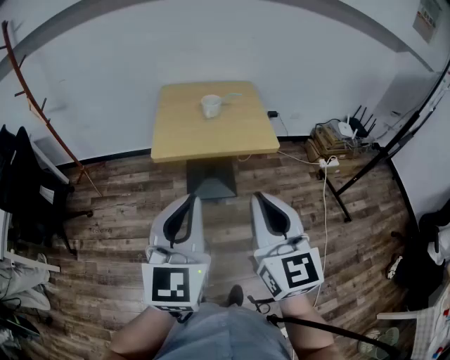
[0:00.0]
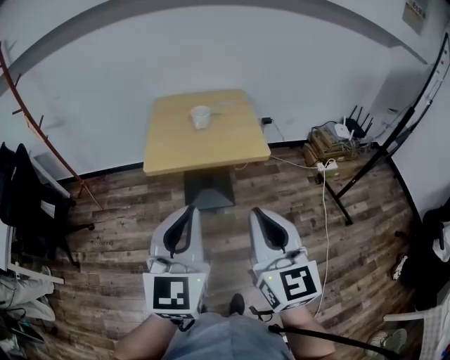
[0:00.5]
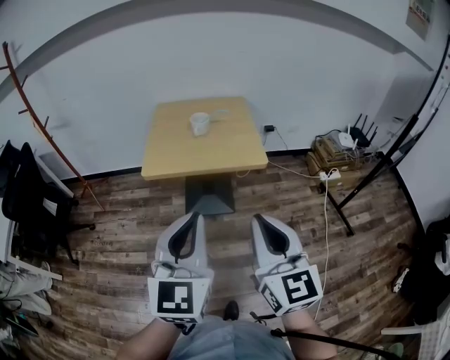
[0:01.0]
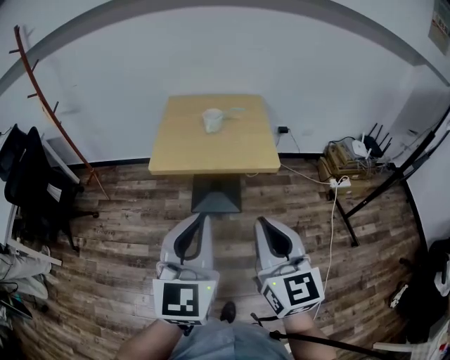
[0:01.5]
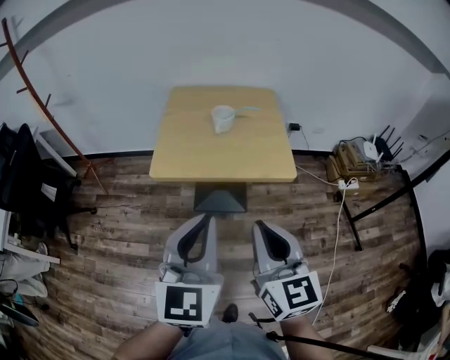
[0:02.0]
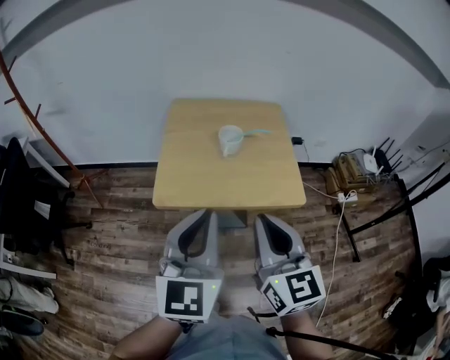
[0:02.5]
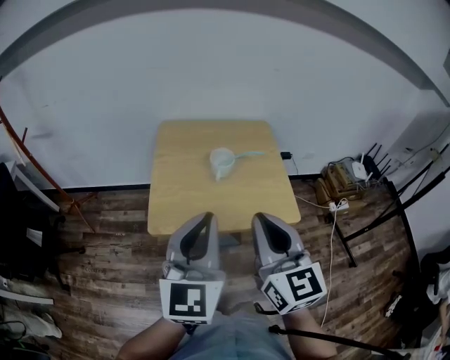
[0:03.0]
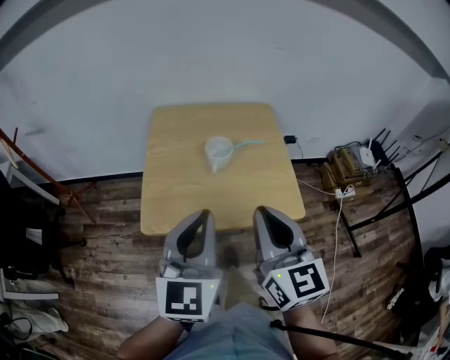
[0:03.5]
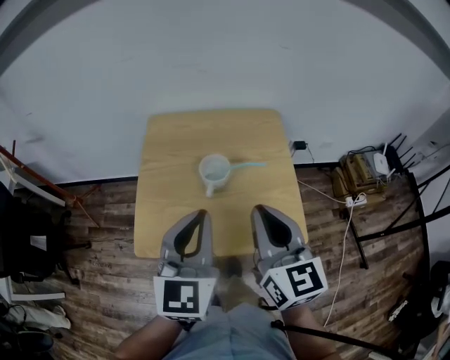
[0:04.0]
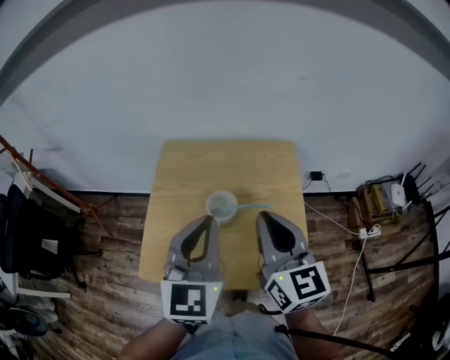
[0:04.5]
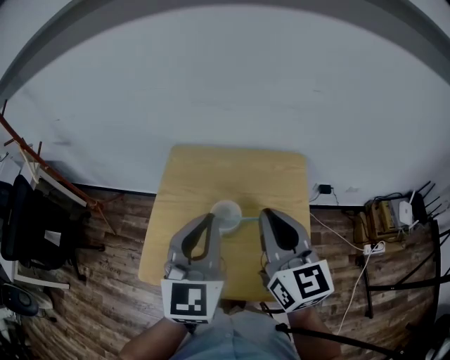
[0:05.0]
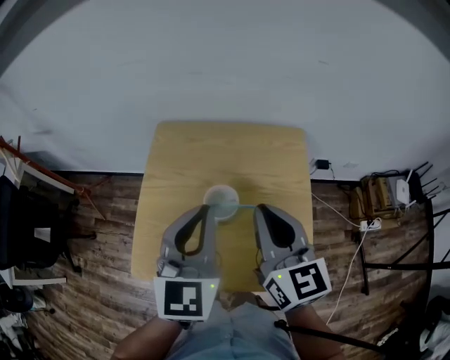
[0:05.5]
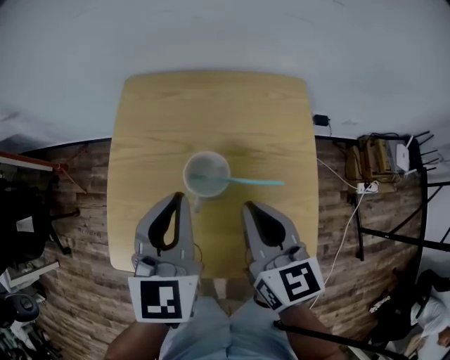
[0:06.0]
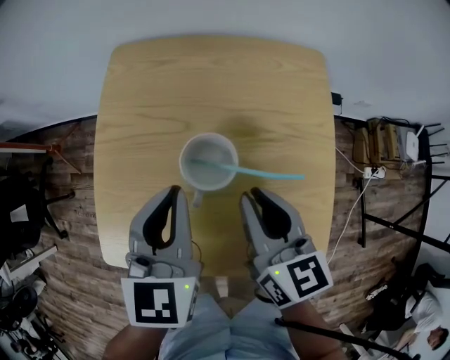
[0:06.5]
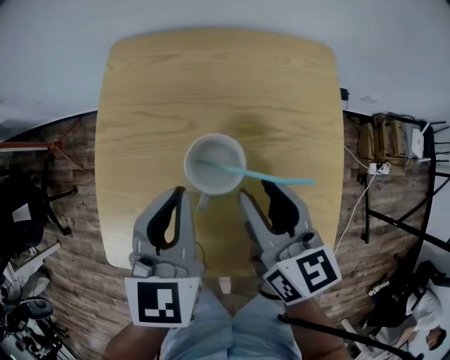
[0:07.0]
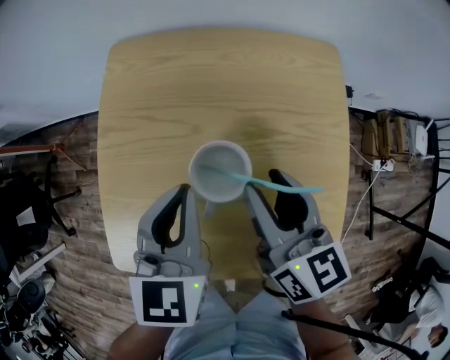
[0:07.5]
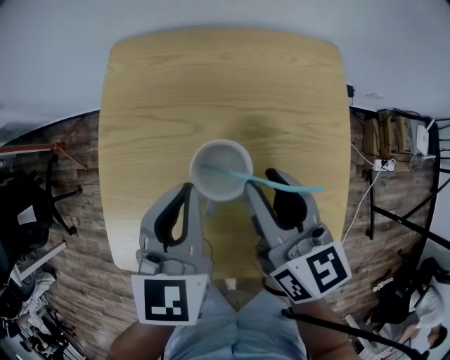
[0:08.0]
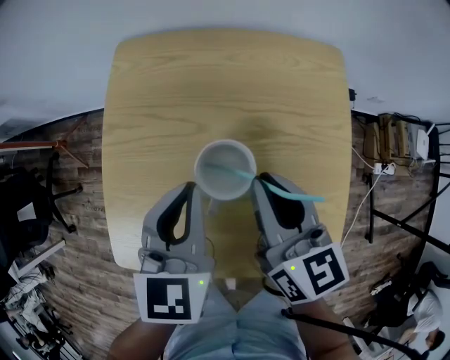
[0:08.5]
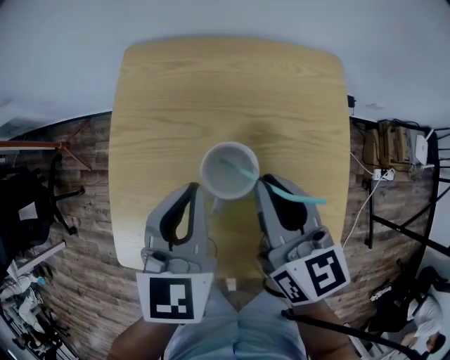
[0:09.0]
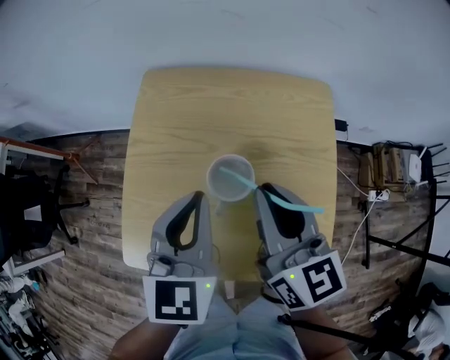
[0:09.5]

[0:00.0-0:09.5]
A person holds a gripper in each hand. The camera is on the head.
0:00.0 to 0:02.0: The left gripper moves forward and to the right, approximately 15 cm, while the right gripper moves forward and downward, roughly 15 cm.
0:02.0 to 0:04.0: The two grippers go some 35 cm forward.
0:04.0 to 0:05.5: Both grippers travel together forward, approximately 15 cm.
0:05.5 to 0:07.5: Both grippers travel together downward, about 15 cm. The right gripper opens its fingers.
0:07.5 to 0:09.5: The two grippers go about 10 cm upward. The right gripper closes up.

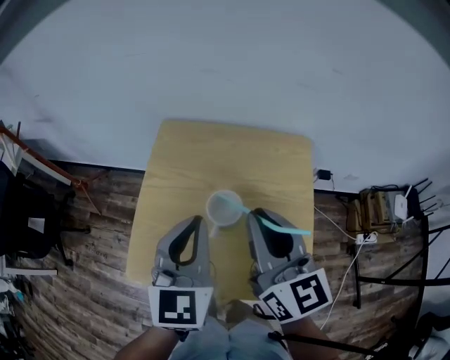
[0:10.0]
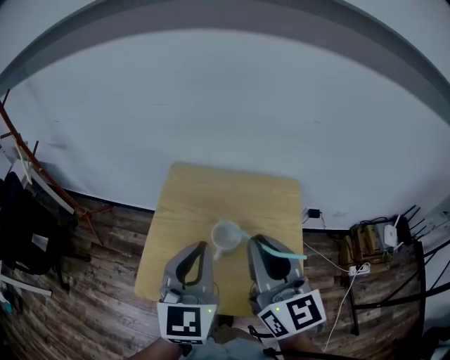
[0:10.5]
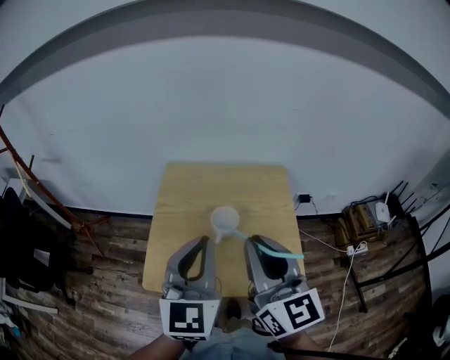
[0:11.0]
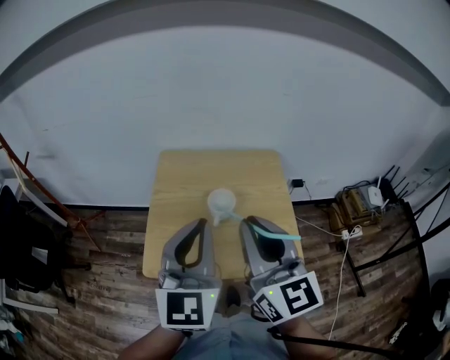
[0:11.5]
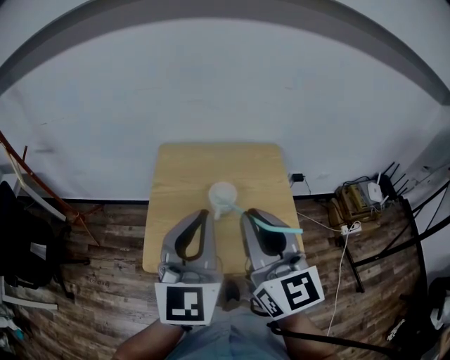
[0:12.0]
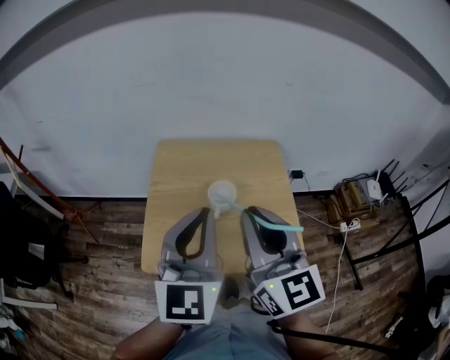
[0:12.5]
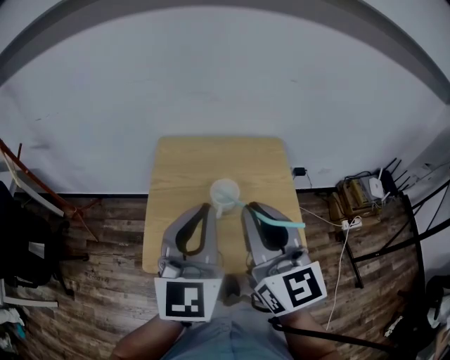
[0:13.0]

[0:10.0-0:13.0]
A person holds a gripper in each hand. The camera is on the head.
0:10.0 to 0:11.5: Both grippers move backward and upward, about 15 cm.
0:11.5 to 0:13.0: The grippers move only a little.

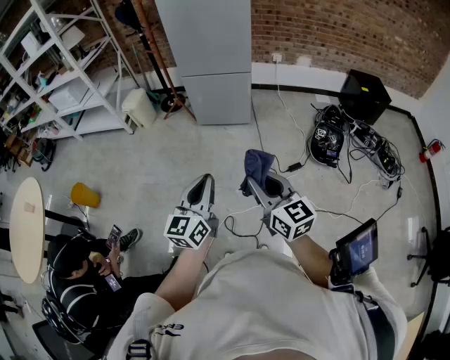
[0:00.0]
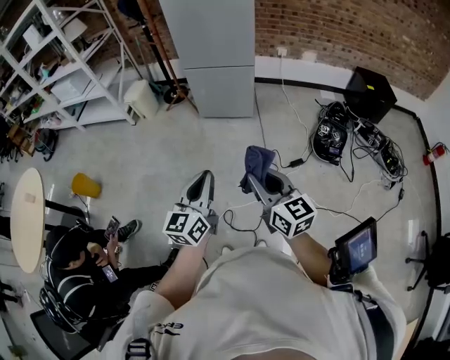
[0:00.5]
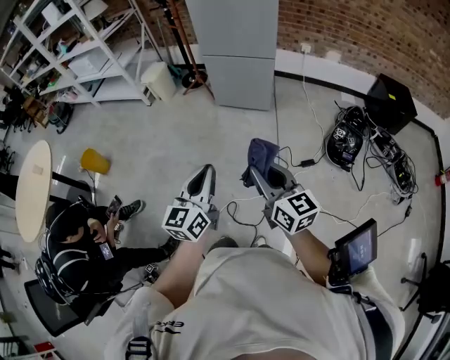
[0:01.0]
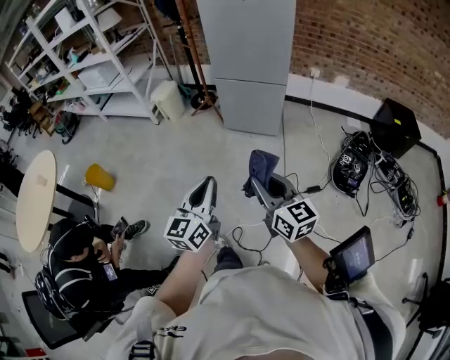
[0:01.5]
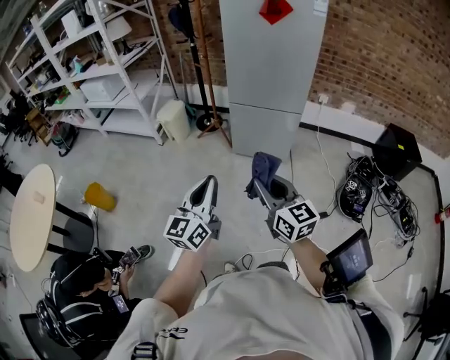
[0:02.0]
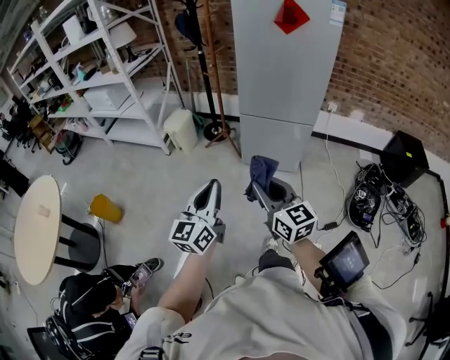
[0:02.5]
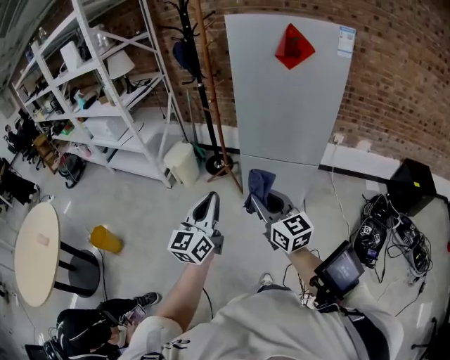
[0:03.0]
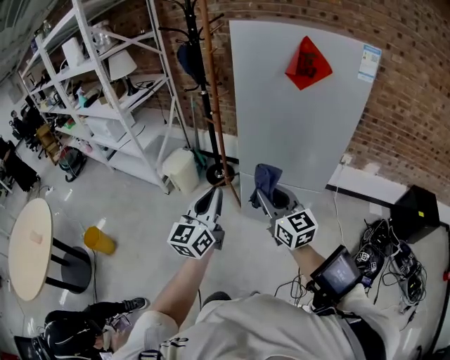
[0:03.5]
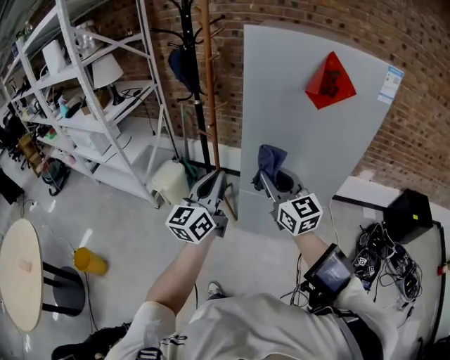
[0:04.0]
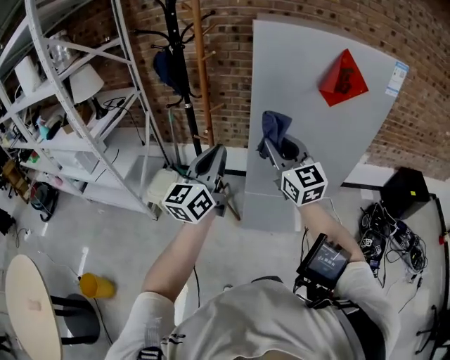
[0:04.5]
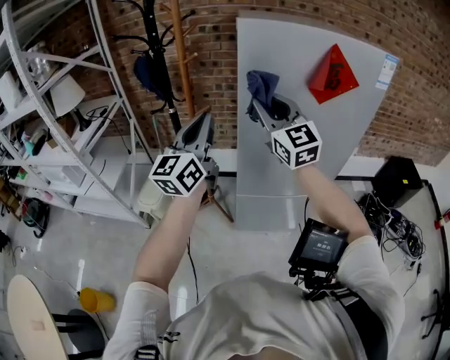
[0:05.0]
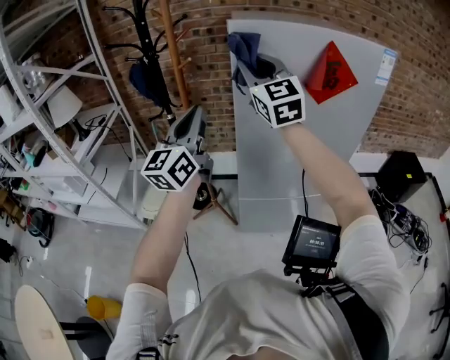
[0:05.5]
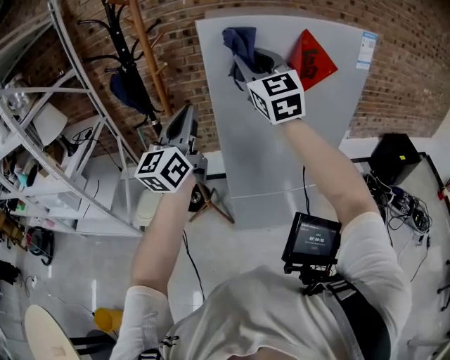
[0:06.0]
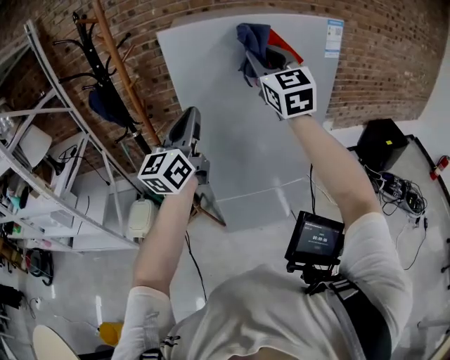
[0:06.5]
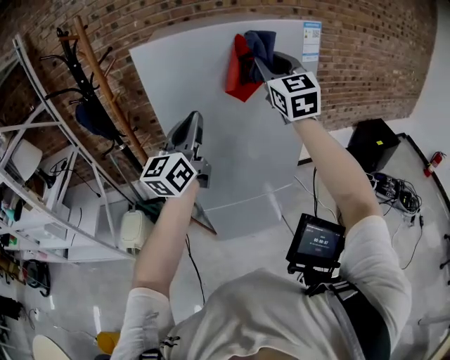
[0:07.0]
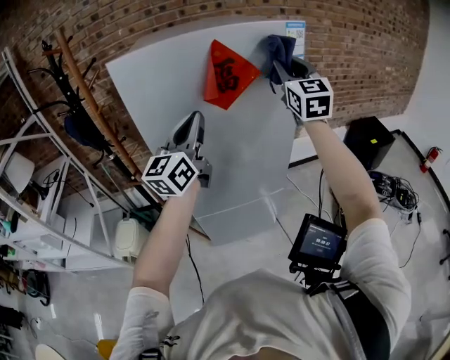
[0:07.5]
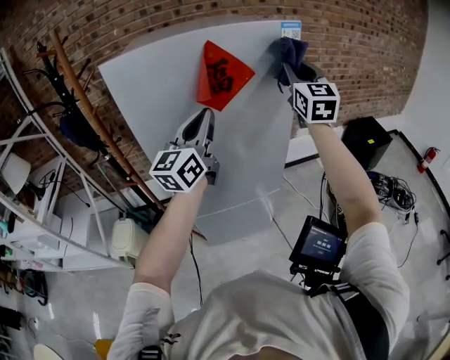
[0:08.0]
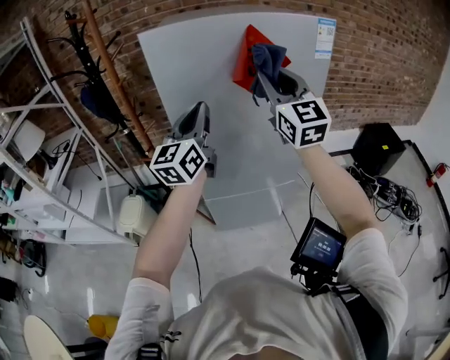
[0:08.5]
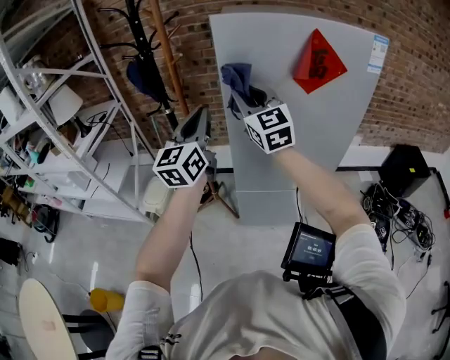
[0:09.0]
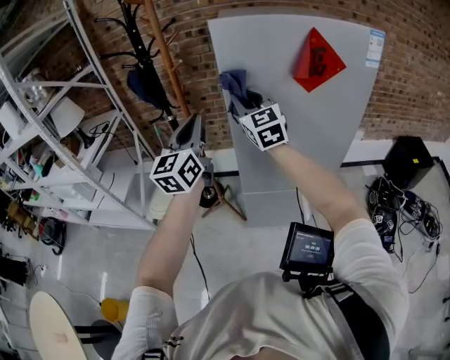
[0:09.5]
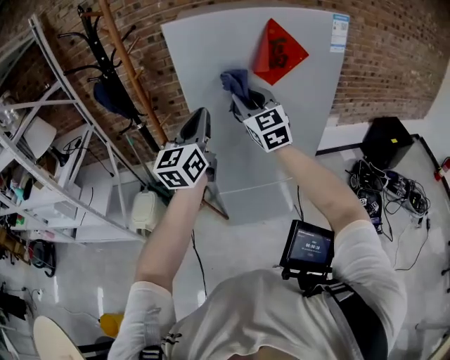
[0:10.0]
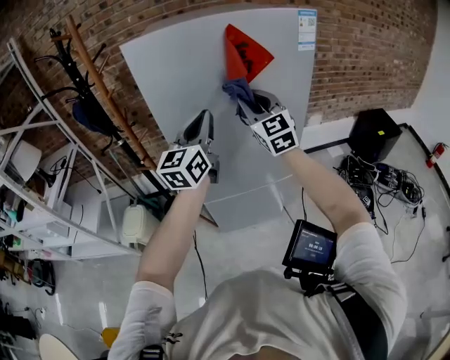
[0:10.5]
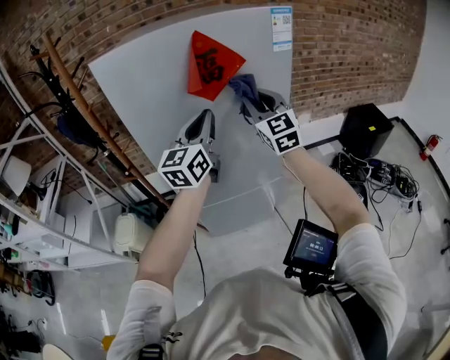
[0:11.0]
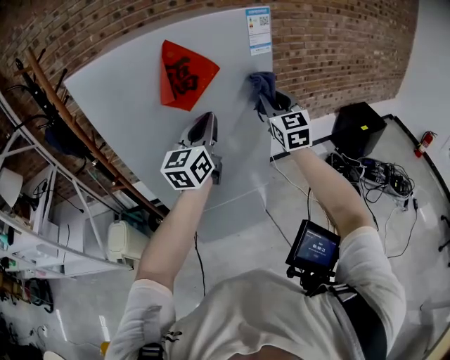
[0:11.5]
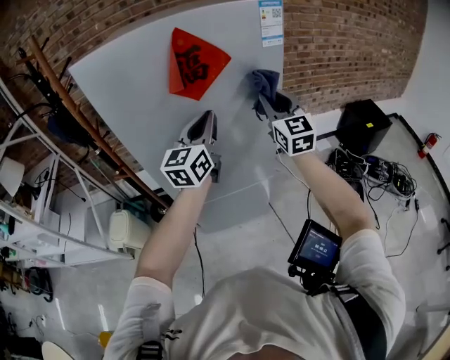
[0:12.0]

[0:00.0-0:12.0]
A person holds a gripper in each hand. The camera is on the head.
0:00.0 to 0:02.0: Both grippers travel together forward and to the left, approximately 25 cm.
0:02.0 to 0:04.0: Both grippers are carried forward, some 50 cm.
0:04.0 to 0:06.0: The left gripper goes approximately 25 cm forward and upward; the right gripper is displaced upward and forward by some 30 cm, and swivels about 40 degrees.
0:06.0 to 0:08.0: The grippers both shift to the right by roughly 30 cm. The right gripper changes its angle by approximately 20 degrees.
0:08.0 to 0:10.0: The right gripper ends up roughly 35 cm from where it was, and turns by about 20 degrees.
0:10.0 to 0:12.0: The left gripper shifts about 25 cm to the right and forward. Meanwhile the right gripper goes roughly 30 cm to the right.

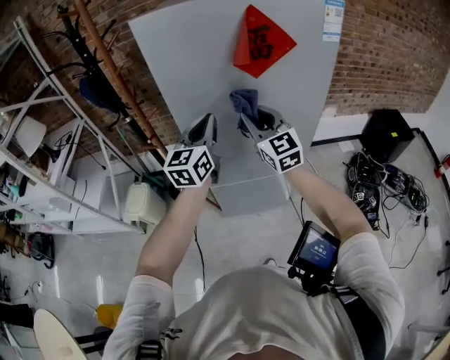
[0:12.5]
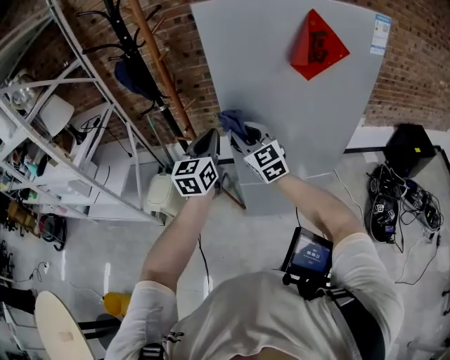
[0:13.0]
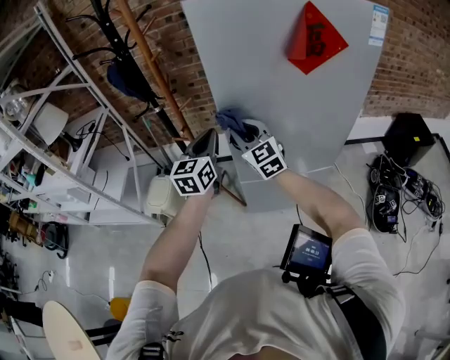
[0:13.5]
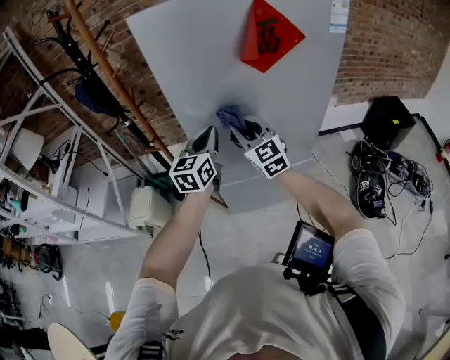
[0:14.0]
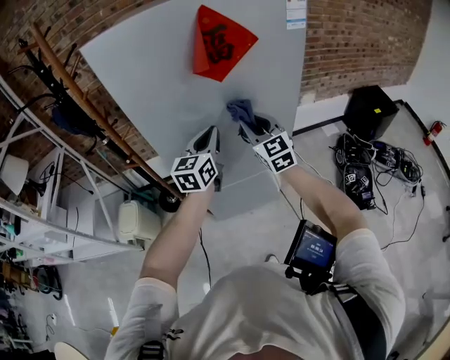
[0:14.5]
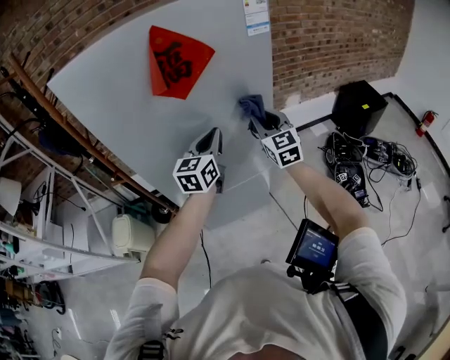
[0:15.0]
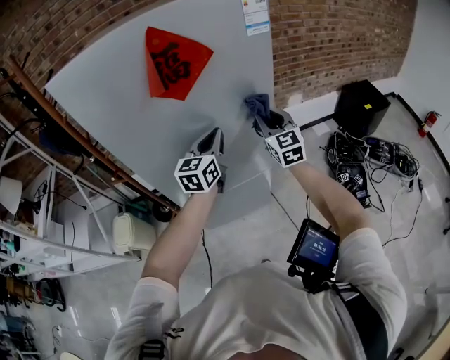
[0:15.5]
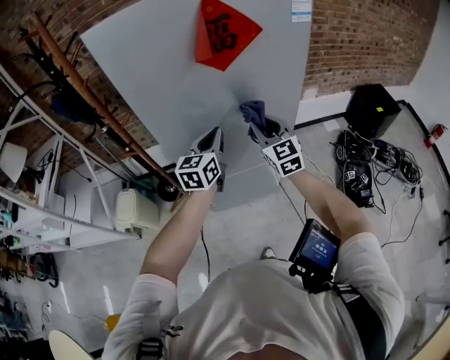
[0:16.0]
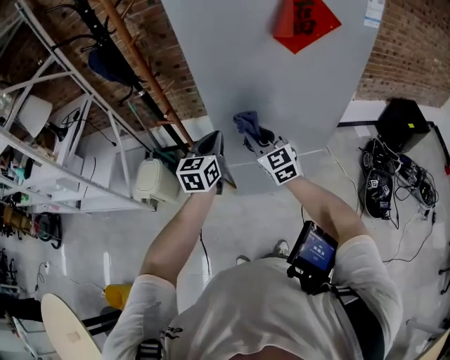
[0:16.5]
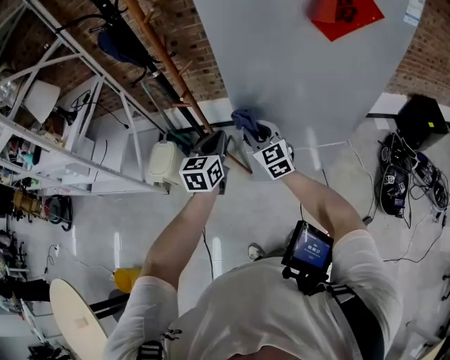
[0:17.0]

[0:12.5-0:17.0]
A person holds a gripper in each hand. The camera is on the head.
0:12.5 to 0:14.5: The left gripper travels to the right and downward by roughly 10 cm. Meanwhile the right gripper travels downward by about 5 cm, and reaches approximately 20 cm to the left, then returns.
0:14.5 to 0:17.0: Both grippers move to the left and downward, roughly 30 cm. The left gripper swivels roughly 20 degrees.
